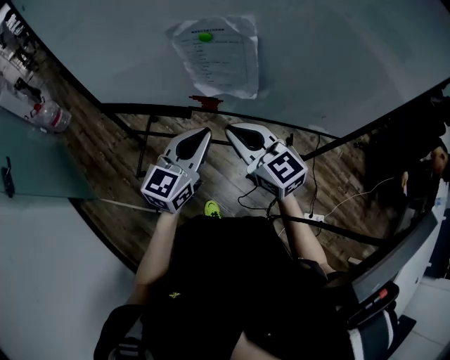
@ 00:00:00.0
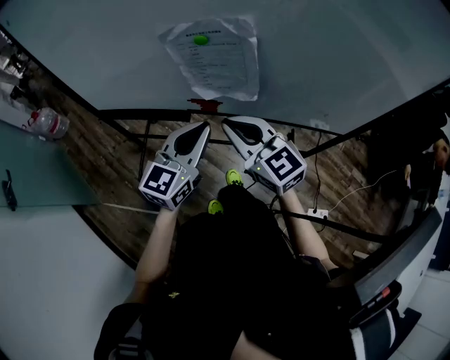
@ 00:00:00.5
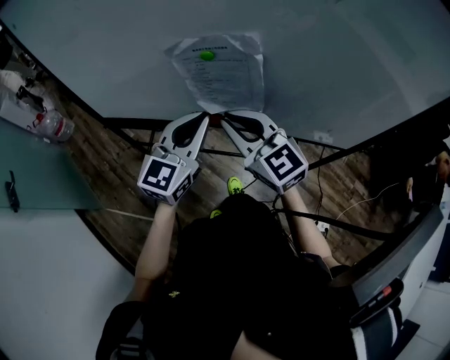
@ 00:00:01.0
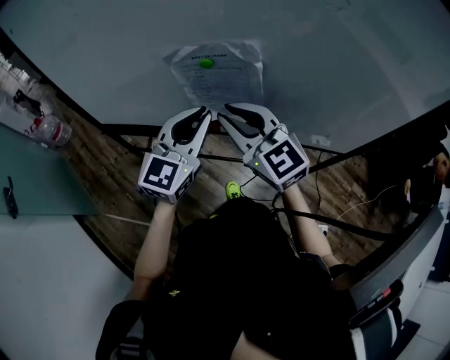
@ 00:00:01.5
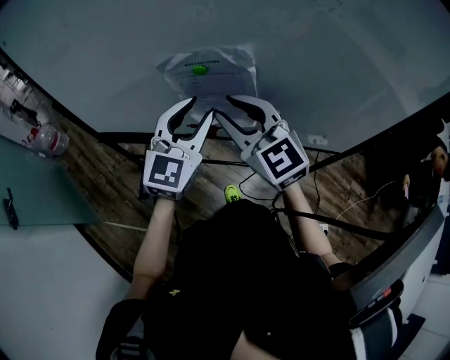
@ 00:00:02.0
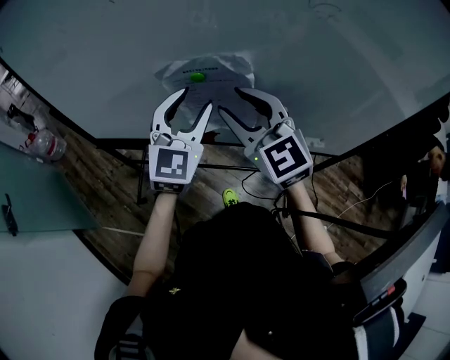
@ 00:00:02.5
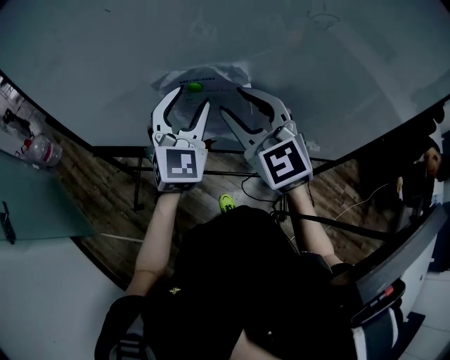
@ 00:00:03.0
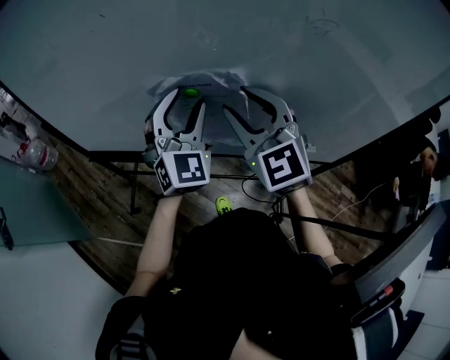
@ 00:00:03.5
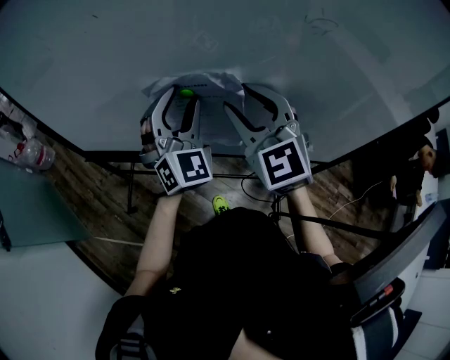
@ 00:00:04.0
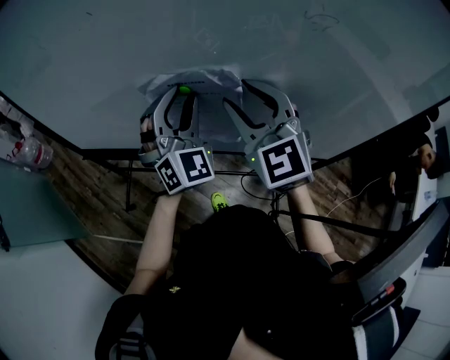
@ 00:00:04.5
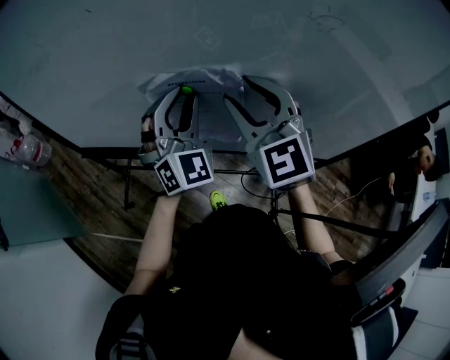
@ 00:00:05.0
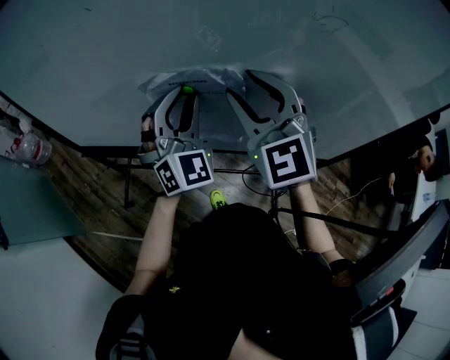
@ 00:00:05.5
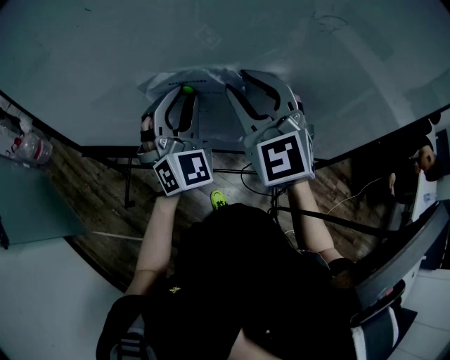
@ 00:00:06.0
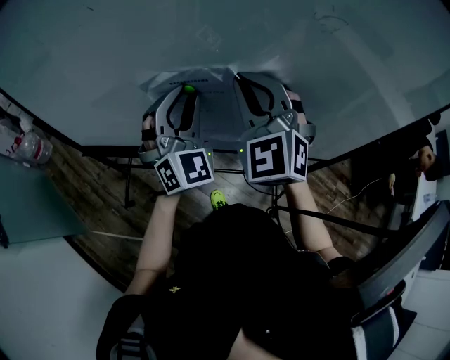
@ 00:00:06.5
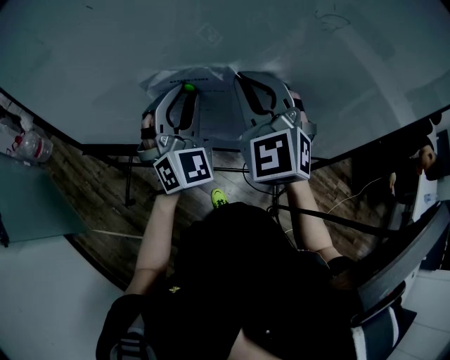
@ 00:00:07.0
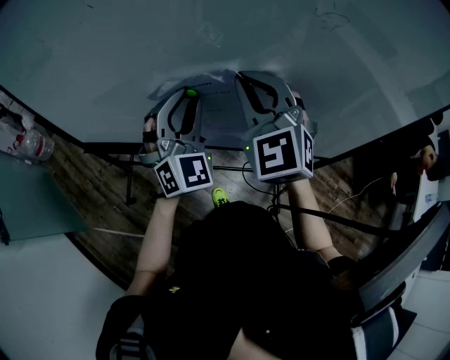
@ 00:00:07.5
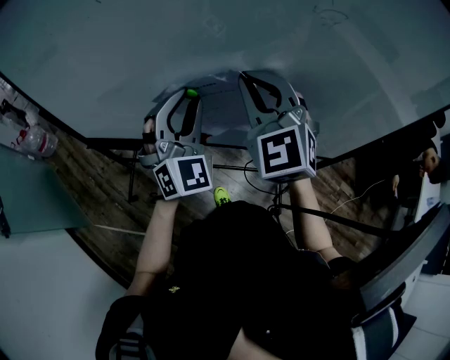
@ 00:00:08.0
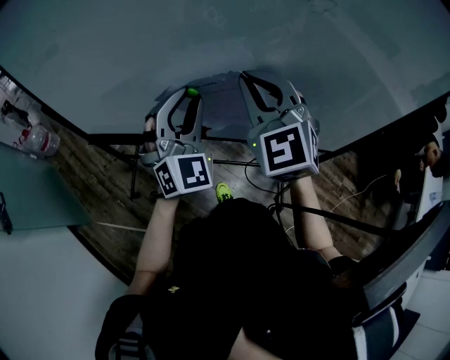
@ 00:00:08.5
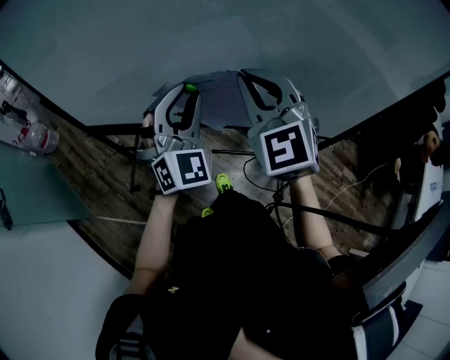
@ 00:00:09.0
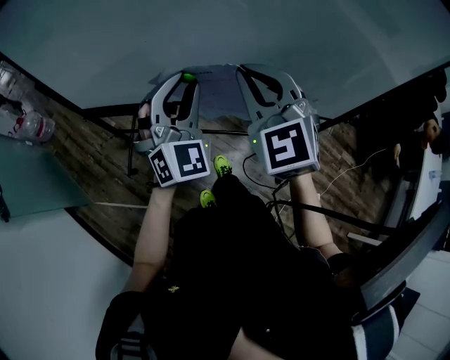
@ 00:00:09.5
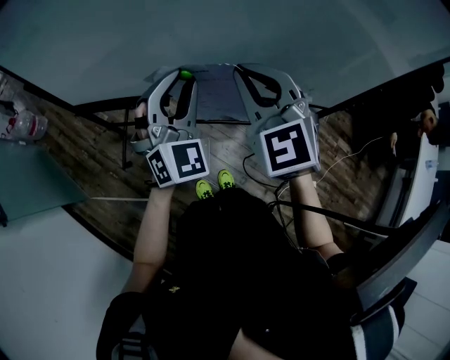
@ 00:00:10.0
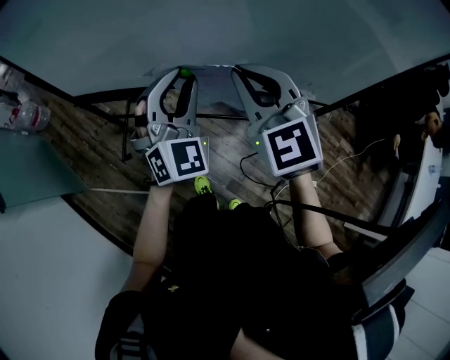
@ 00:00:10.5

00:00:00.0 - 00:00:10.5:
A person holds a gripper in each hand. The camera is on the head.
00:00:00.0 - 00:00:02.0: Both grippers move forward and upward, about 15 cm. The right gripper opens its fingers, while the left gripper changes its angle by about 20 degrees, and opens its fingers.
00:00:02.0 - 00:00:04.0: The right gripper goes about 5 cm to the right; the left gripper is displaced forward by roughly 10 cm, and turns by approximately 30 degrees.
00:00:04.0 - 00:00:06.5: The right gripper closes up.
00:00:06.5 - 00:00:08.5: The grippers make only small movements.
00:00:08.5 - 00:00:10.5: The right gripper shifts roughly 10 cm backward and downward; the left gripper moves backward, roughly 10 cm.

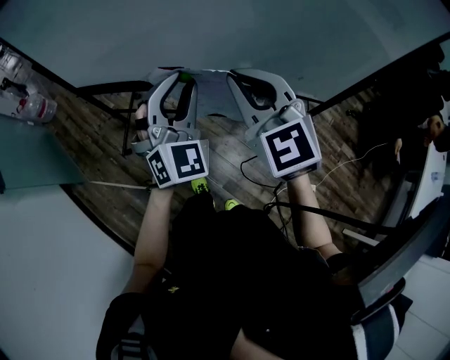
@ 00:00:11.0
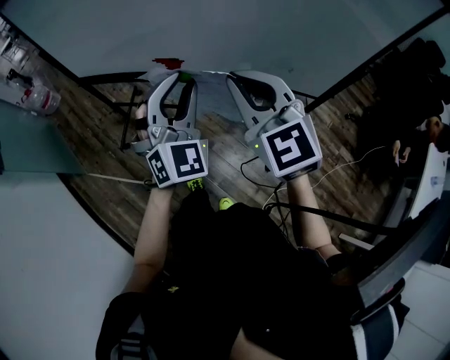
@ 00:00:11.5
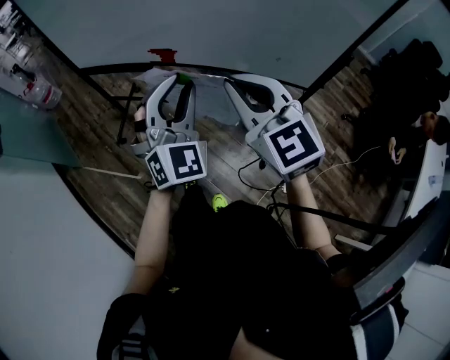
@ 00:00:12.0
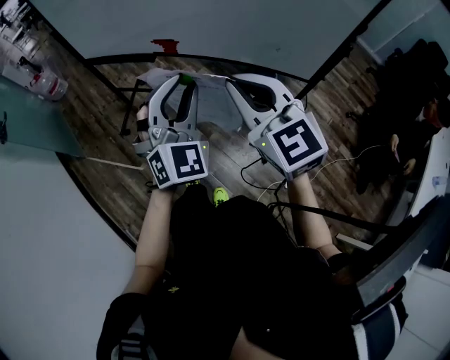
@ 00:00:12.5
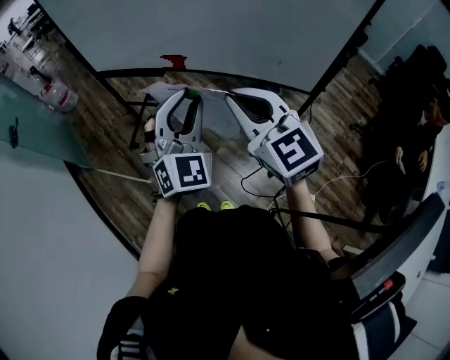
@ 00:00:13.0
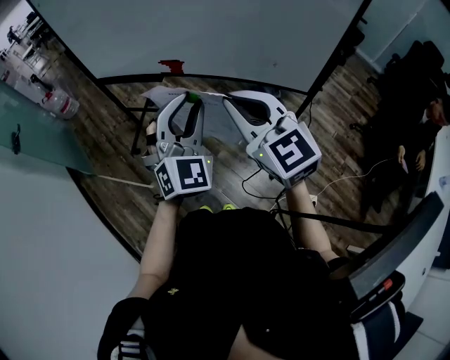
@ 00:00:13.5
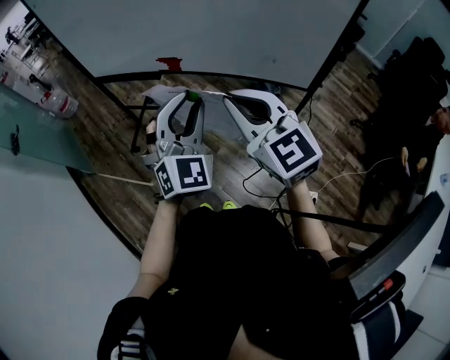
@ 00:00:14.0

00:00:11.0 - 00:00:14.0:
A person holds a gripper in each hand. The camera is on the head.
00:00:11.0 - 00:00:12.5: The grippers both shift backward by approximately 20 cm.
00:00:12.5 - 00:00:14.0: The grippers move only a little.

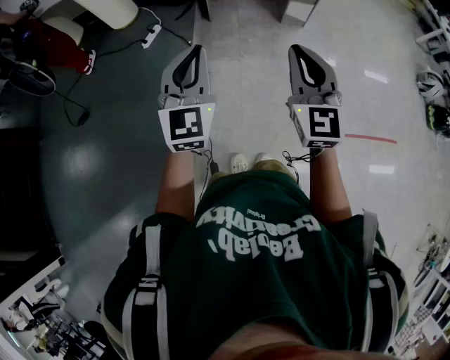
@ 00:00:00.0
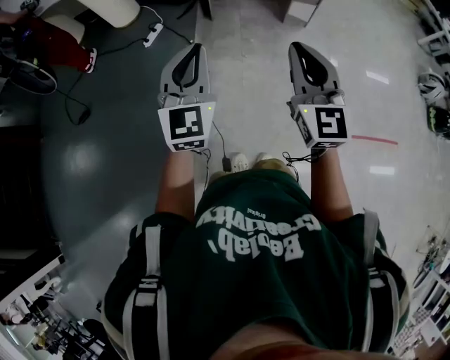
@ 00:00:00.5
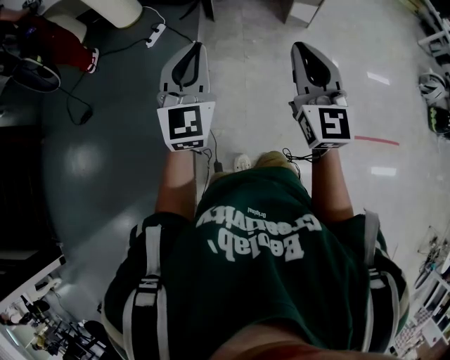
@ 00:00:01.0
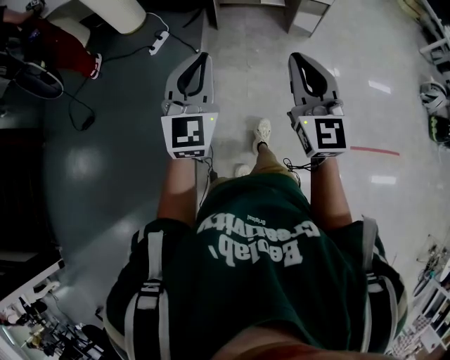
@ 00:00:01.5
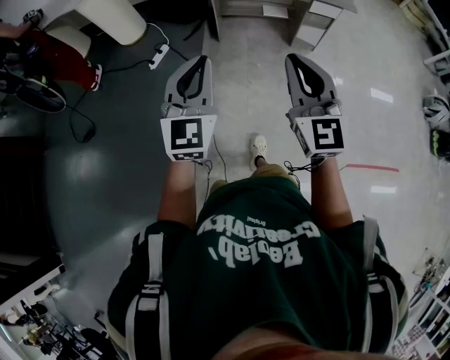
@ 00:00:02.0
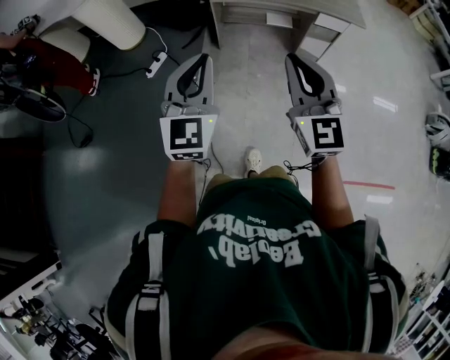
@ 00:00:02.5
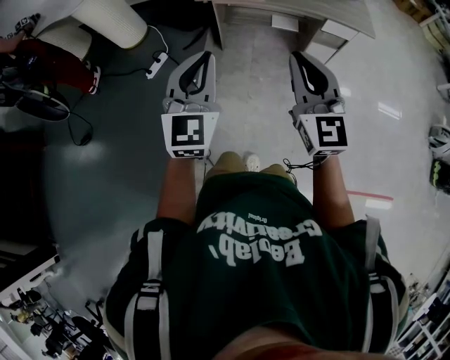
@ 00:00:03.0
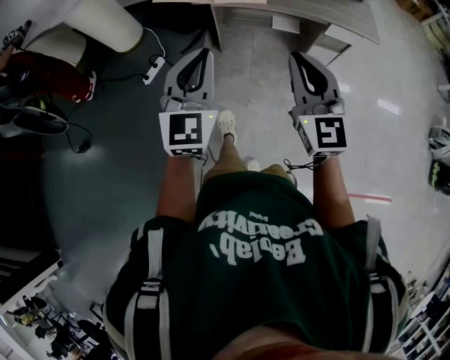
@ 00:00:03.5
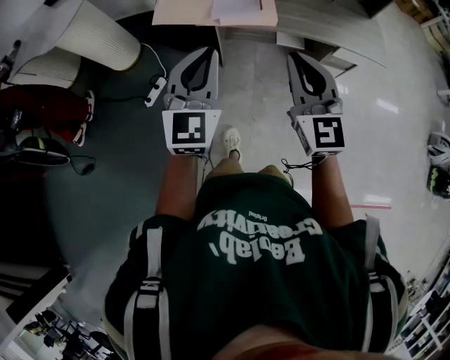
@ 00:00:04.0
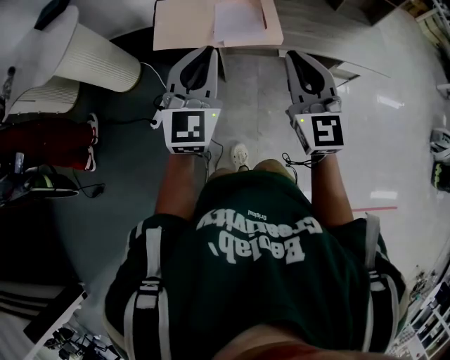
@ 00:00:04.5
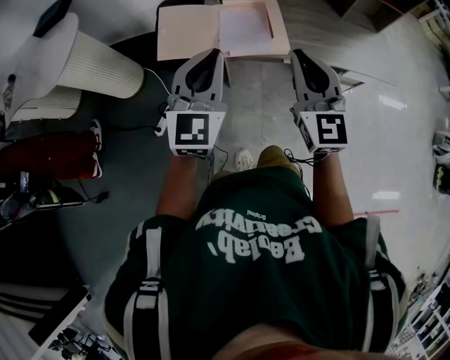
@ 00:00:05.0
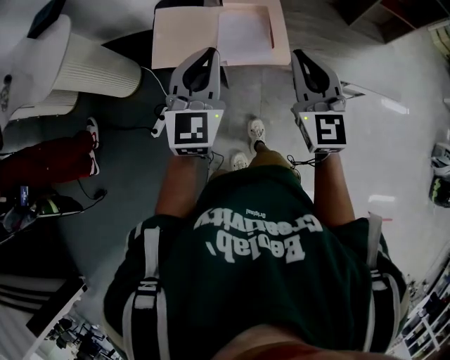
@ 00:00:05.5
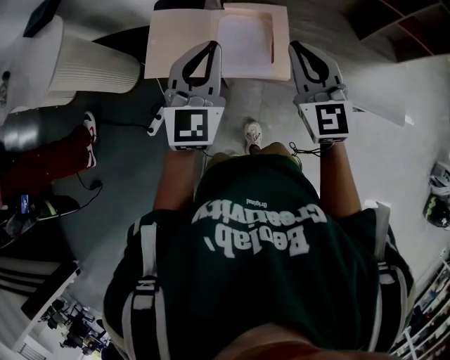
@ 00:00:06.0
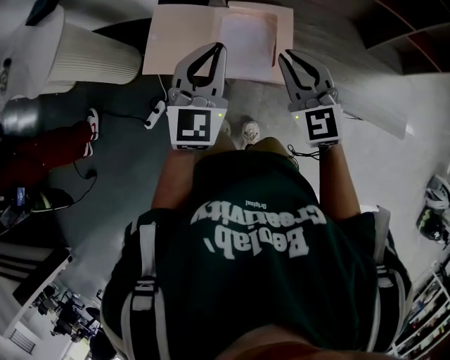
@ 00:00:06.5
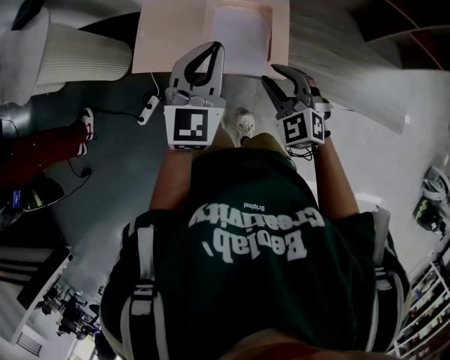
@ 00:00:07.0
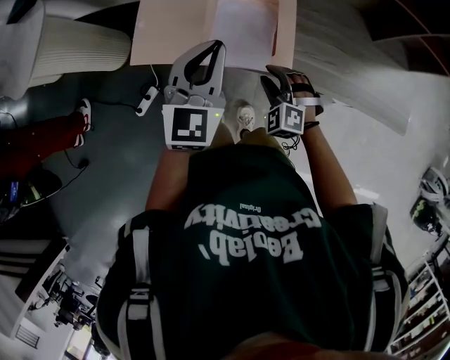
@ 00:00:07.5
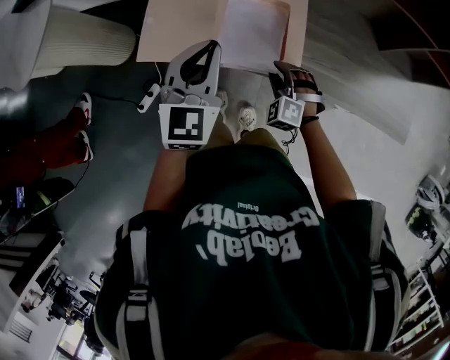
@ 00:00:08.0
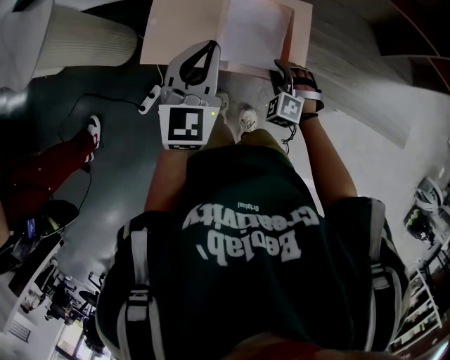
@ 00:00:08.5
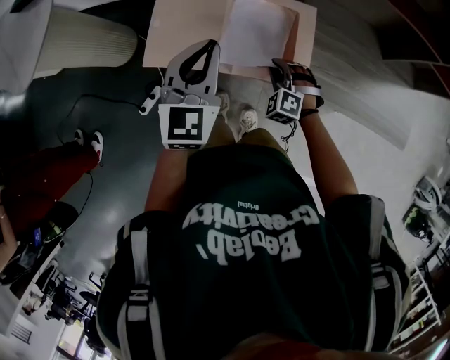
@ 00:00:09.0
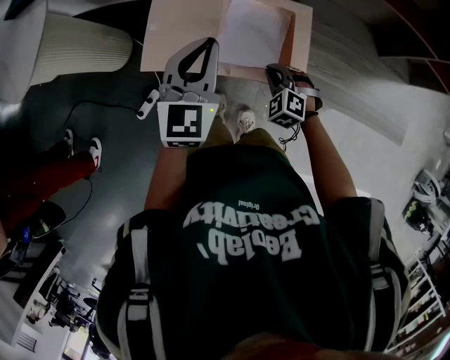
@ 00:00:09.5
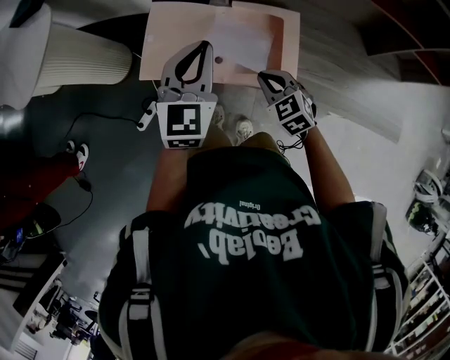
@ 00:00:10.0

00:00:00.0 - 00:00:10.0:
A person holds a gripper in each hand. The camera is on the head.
00:00:00.0 - 00:00:02.0: Both grippers move forward, about 10 cm.
00:00:02.0 - 00:00:04.0: Both grippers move forward, some 35 cm.
00:00:04.0 - 00:00:06.0: Both grippers travel together forward, approximately 30 cm.
00:00:06.0 - 00:00:08.0: The right gripper heads downward, covering roughly 25 cm, angles its fingers downward, by roughly 40 degrees, and opens.
00:00:08.0 - 00:00:10.0: The right gripper is displaced upward by about 5 cm, rotates roughly 40 degrees, and closes.

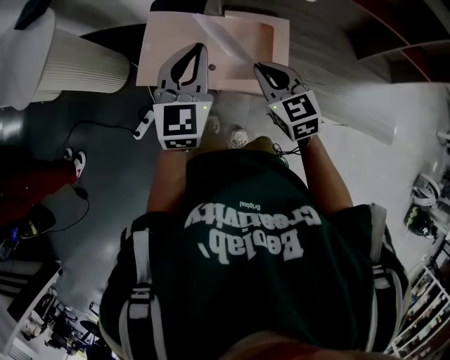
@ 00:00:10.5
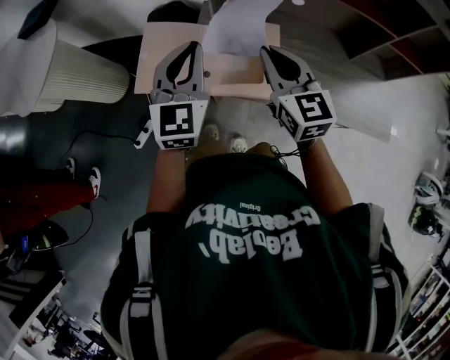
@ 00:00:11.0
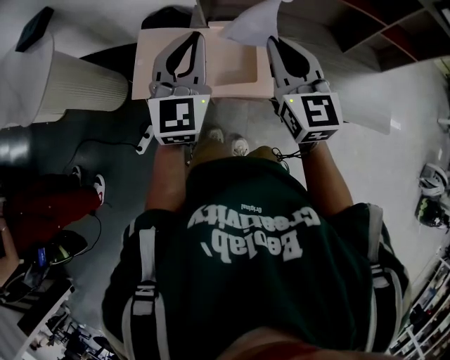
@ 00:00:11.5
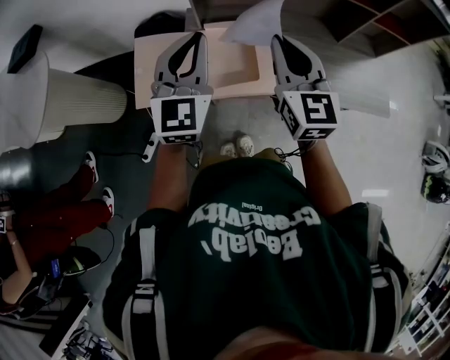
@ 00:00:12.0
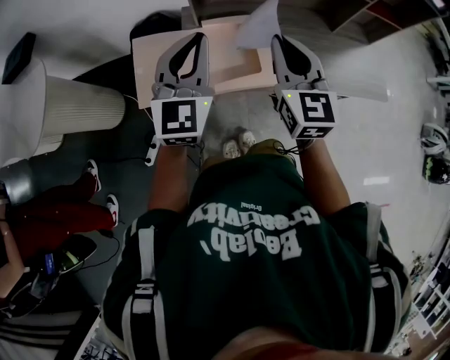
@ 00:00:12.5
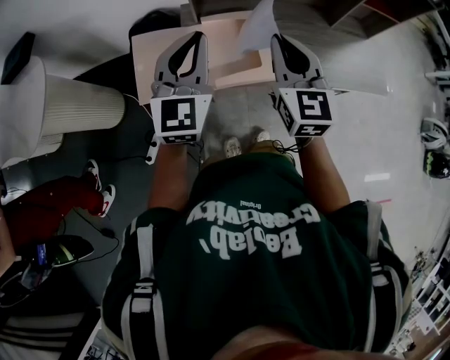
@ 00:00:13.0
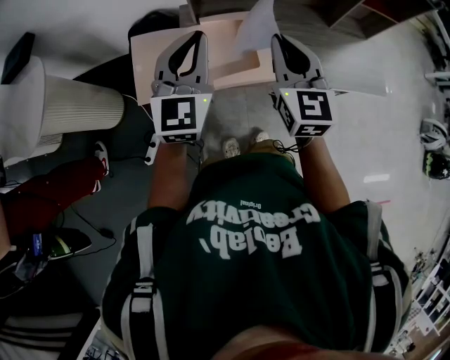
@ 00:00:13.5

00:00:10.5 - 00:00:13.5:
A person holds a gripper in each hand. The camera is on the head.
00:00:10.5 - 00:00:12.0: The left gripper heads upward, covering approximately 5 cm, while the right gripper shifts roughly 15 cm upward and to the right, and changes its angle by roughly 30 degrees.
00:00:12.0 - 00:00:13.5: The right gripper goes approximately 5 cm backward.
